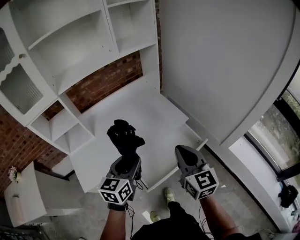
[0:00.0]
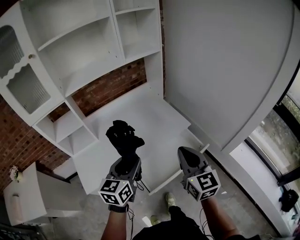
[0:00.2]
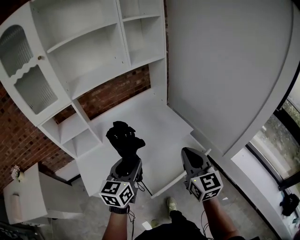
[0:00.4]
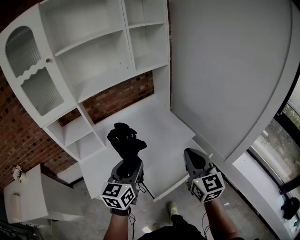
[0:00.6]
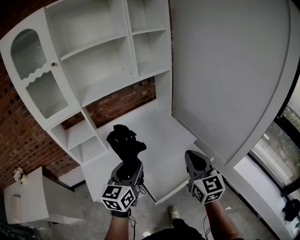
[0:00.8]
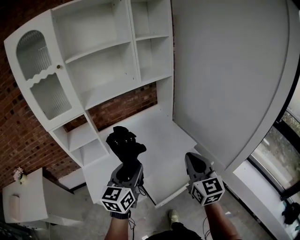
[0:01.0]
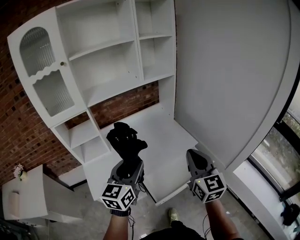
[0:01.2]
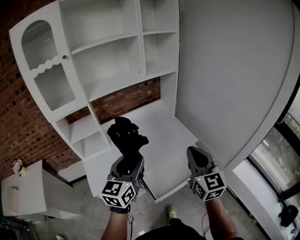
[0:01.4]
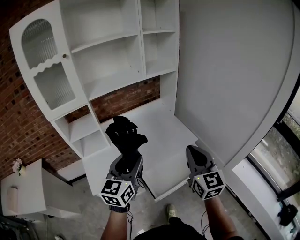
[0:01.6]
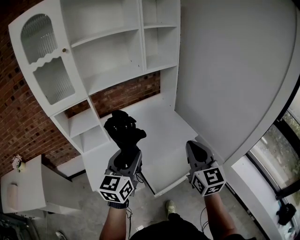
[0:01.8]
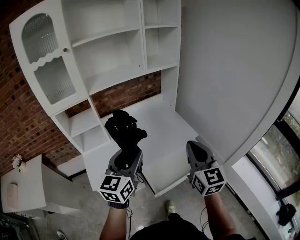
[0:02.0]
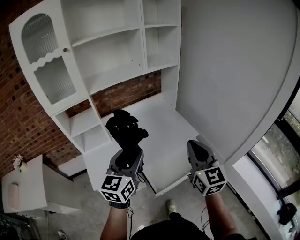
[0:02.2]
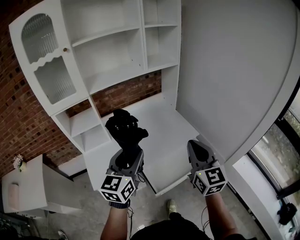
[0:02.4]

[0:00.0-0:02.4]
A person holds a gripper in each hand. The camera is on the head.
0:00.0 to 0:01.2: The right gripper goes approximately 10 cm upward. The left gripper travels upward and to the left by about 15 cm.
0:01.2 to 0:02.4: There are only small adjustments of the grippers.

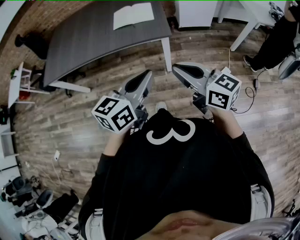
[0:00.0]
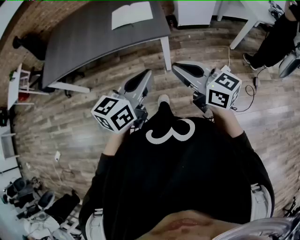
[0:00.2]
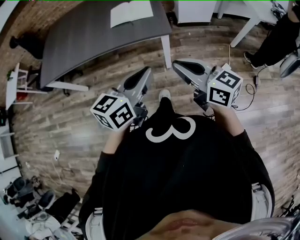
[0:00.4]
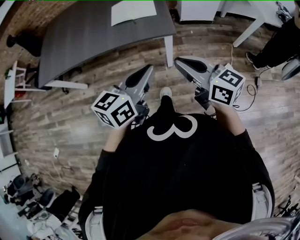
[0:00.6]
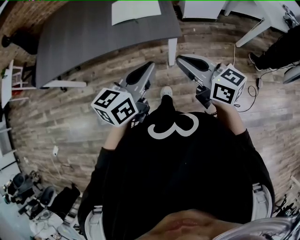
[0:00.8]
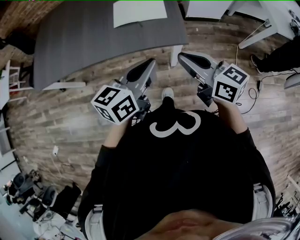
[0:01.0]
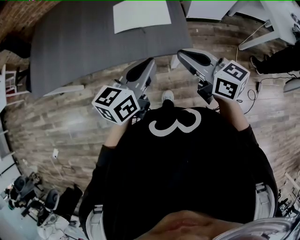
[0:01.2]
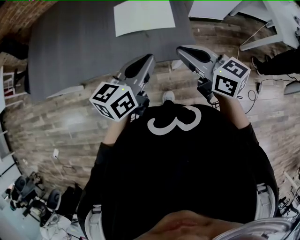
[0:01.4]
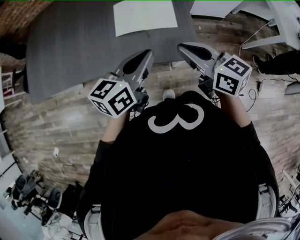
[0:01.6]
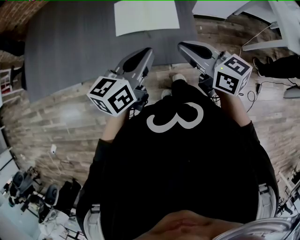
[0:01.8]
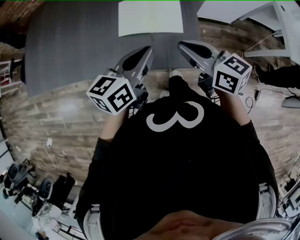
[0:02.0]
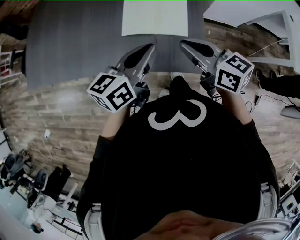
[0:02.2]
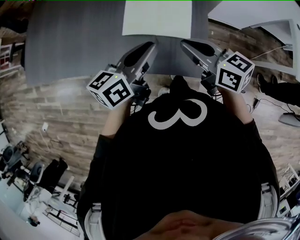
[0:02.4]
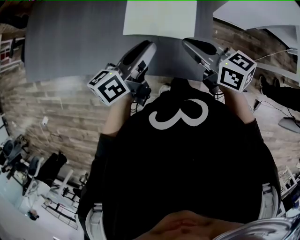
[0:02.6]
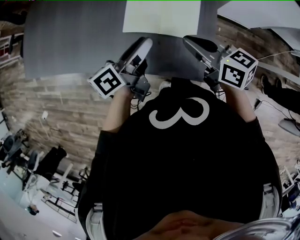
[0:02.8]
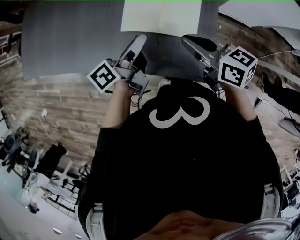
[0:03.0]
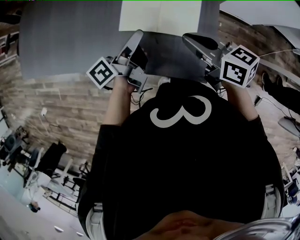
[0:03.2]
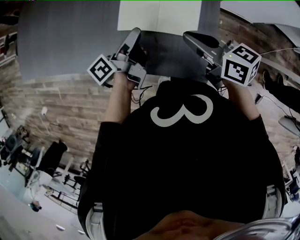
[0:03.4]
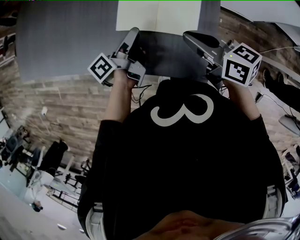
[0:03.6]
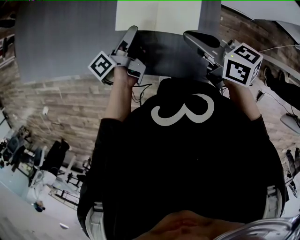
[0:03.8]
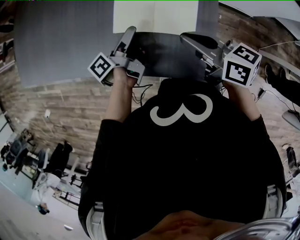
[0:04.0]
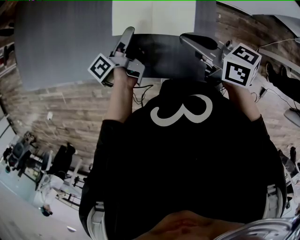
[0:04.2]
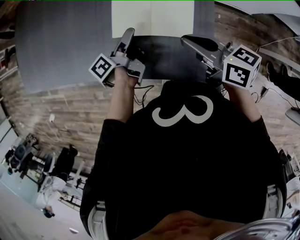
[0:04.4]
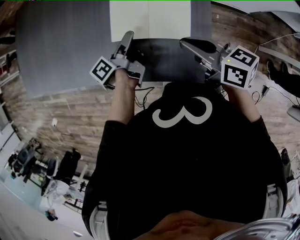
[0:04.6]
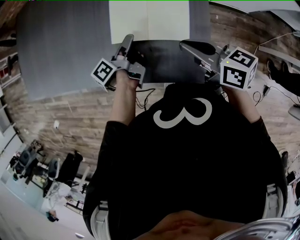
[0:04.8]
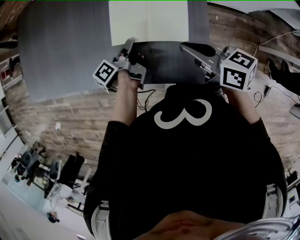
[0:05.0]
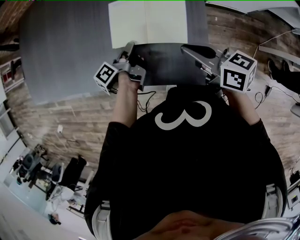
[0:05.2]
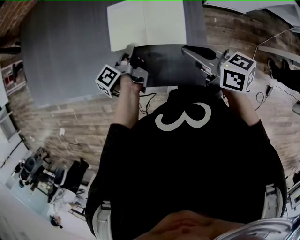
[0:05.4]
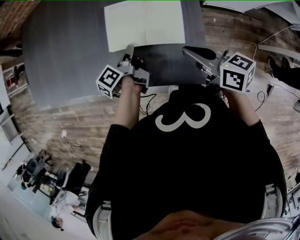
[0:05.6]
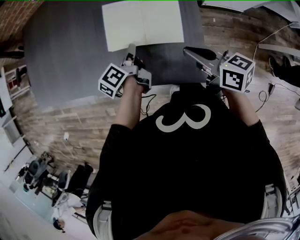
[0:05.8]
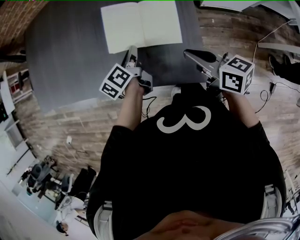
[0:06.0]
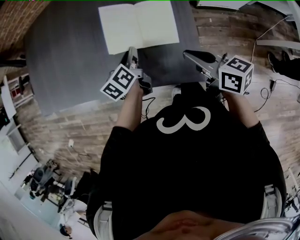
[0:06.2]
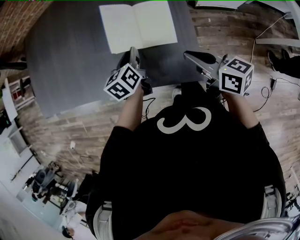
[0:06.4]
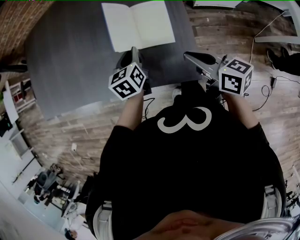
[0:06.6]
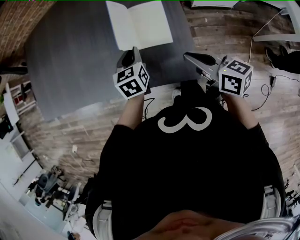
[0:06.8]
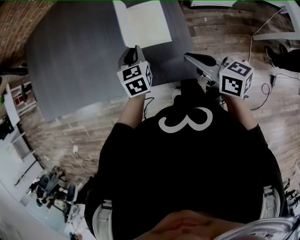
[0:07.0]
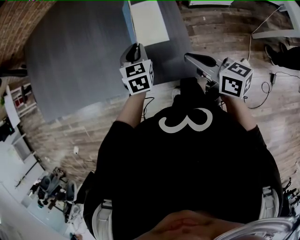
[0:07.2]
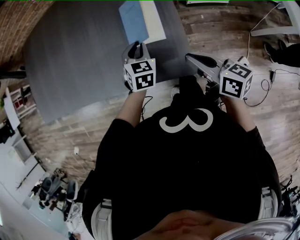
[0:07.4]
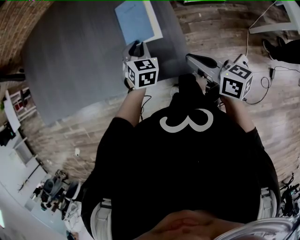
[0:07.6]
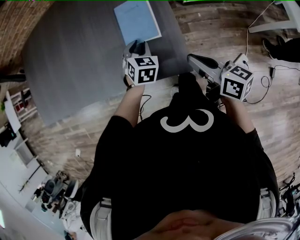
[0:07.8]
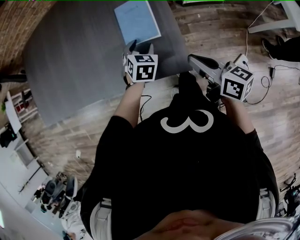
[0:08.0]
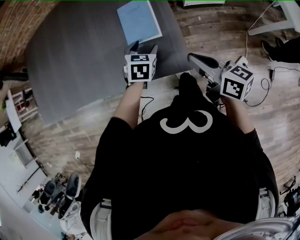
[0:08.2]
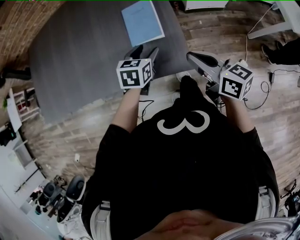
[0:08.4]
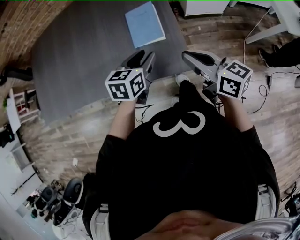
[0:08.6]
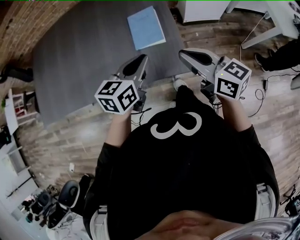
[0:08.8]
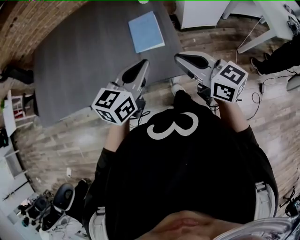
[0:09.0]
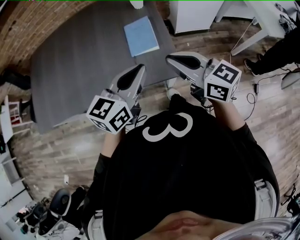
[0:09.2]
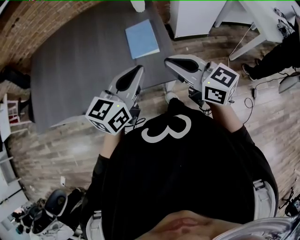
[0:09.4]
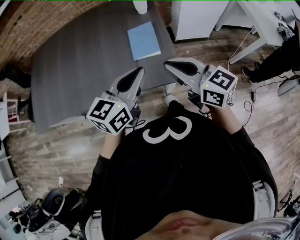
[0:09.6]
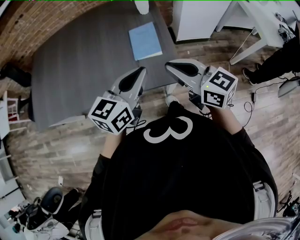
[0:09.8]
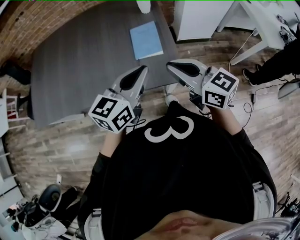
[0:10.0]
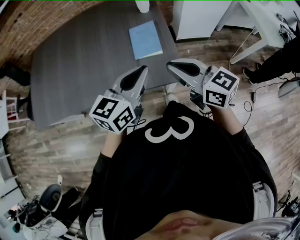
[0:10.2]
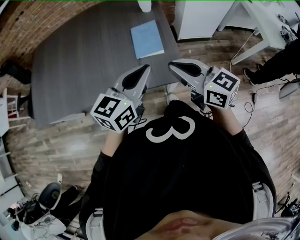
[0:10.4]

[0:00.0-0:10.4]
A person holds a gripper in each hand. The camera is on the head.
0:00.0 to 0:01.4: The grippers both shift forward by about 30 cm.
0:01.4 to 0:03.0: Both grippers move forward and downward, approximately 20 cm. The right gripper swivels approximately 20 degrees; the left gripper rotates around the line of its fingers by approximately 50 degrees, counterclockwise from behind, and opens.
0:03.0 to 0:04.4: The left gripper is displaced downward and forward by approximately 10 cm, and turns by some 20 degrees.
0:04.4 to 0:06.0: The left gripper changes its angle by about 40 degrees, and closes its fingers. Meanwhile the right gripper heads backward, covering roughly 5 cm.
0:06.0 to 0:07.4: The left gripper travels to the right by about 10 cm, and twists about 70 degrees clockwise, seen from behind; the right gripper moves backward, some 5 cm.
0:07.4 to 0:09.0: The left gripper goes some 25 cm upward and backward, swivels some 50 degrees, and opens, then closes again. The right gripper is displaced upward, to the left and backward by roughly 15 cm, and rotates about 30 degrees.
0:09.0 to 0:10.4: The grippers stay close to where they were, moving slightly.

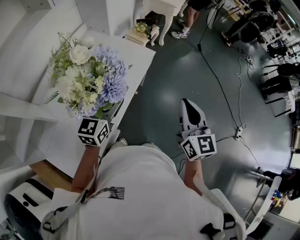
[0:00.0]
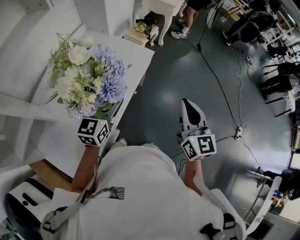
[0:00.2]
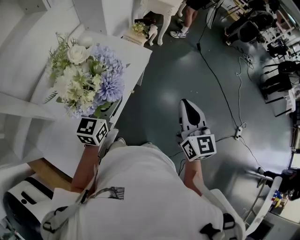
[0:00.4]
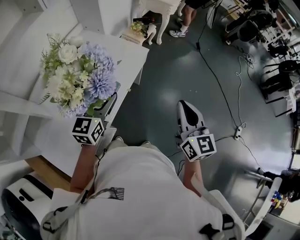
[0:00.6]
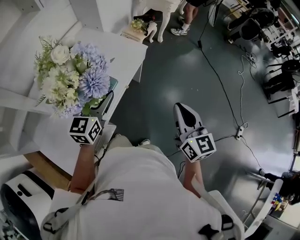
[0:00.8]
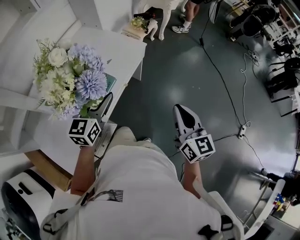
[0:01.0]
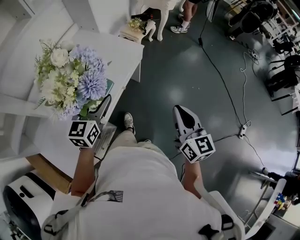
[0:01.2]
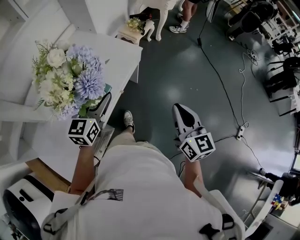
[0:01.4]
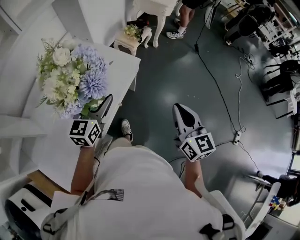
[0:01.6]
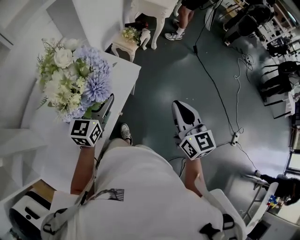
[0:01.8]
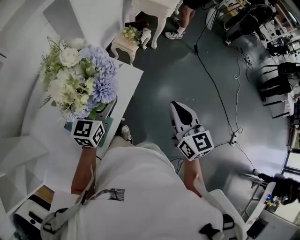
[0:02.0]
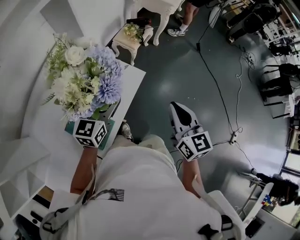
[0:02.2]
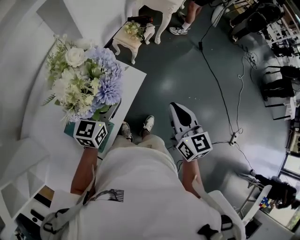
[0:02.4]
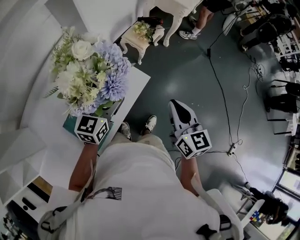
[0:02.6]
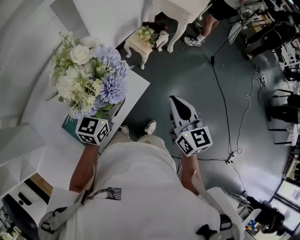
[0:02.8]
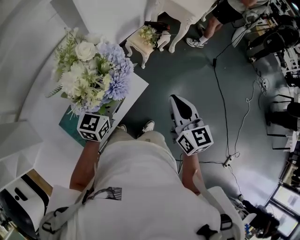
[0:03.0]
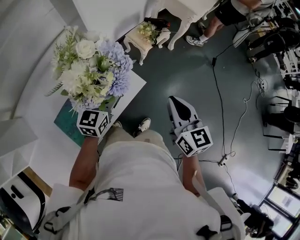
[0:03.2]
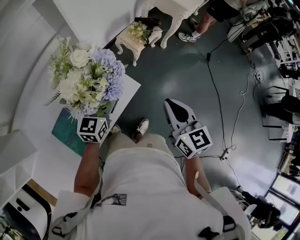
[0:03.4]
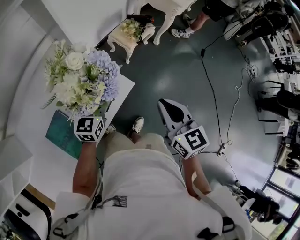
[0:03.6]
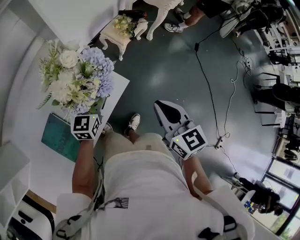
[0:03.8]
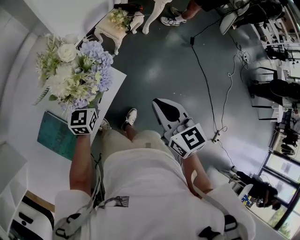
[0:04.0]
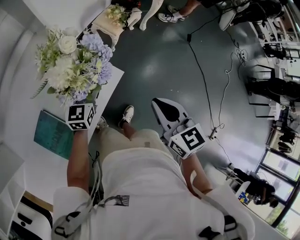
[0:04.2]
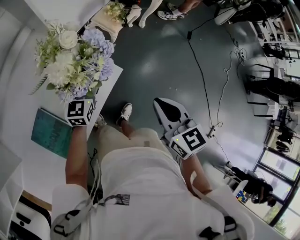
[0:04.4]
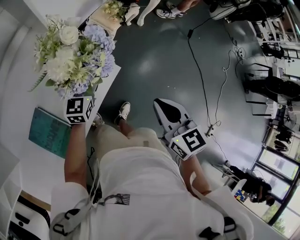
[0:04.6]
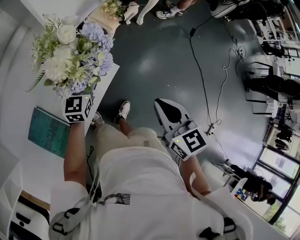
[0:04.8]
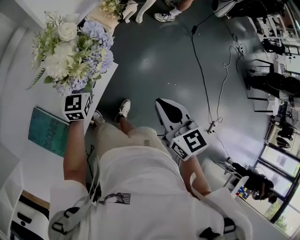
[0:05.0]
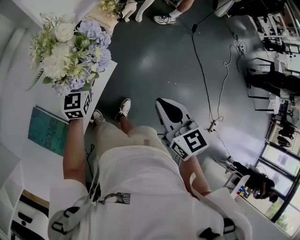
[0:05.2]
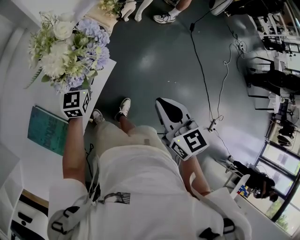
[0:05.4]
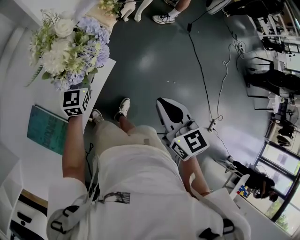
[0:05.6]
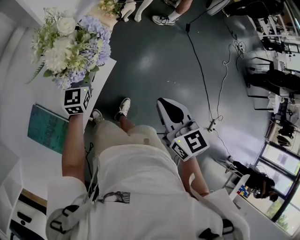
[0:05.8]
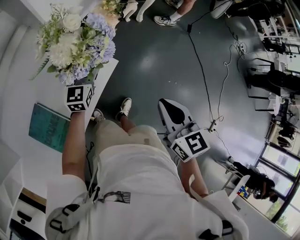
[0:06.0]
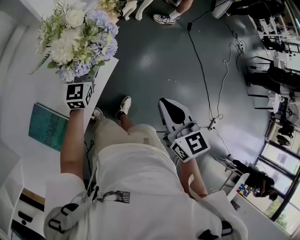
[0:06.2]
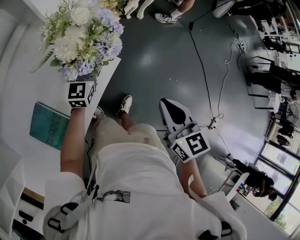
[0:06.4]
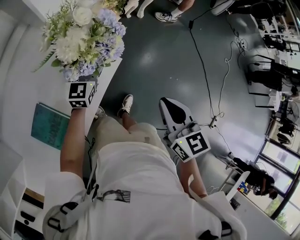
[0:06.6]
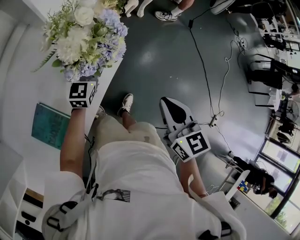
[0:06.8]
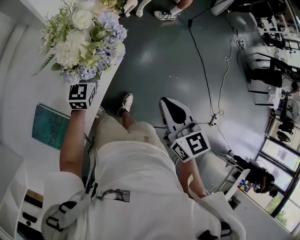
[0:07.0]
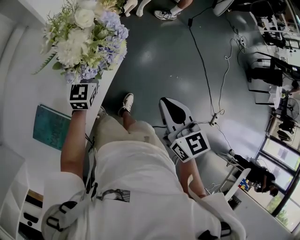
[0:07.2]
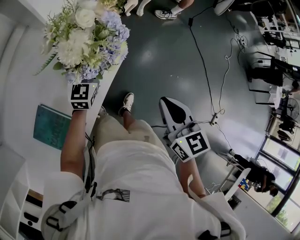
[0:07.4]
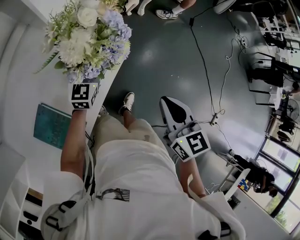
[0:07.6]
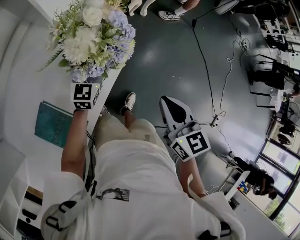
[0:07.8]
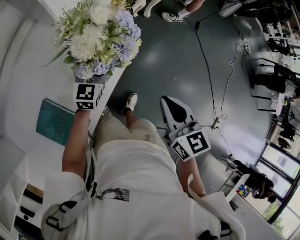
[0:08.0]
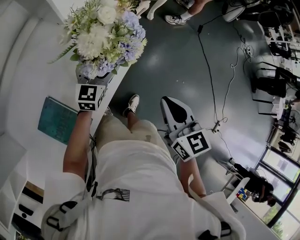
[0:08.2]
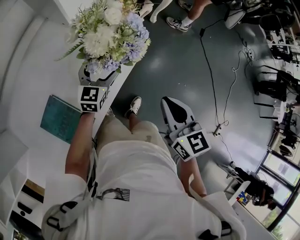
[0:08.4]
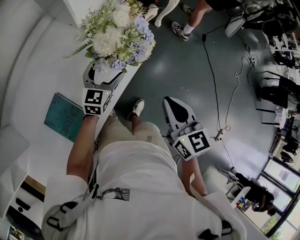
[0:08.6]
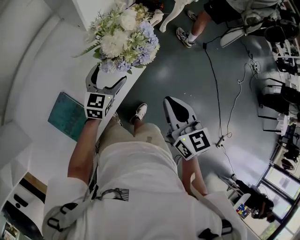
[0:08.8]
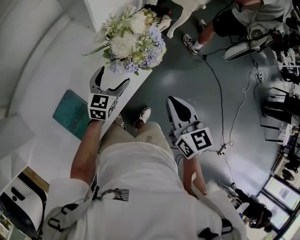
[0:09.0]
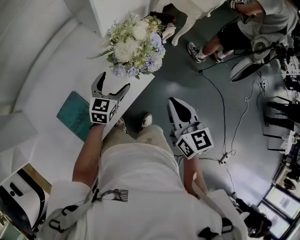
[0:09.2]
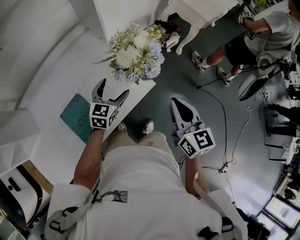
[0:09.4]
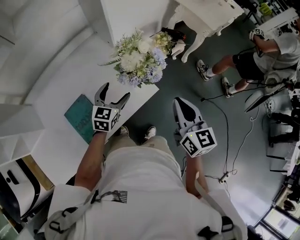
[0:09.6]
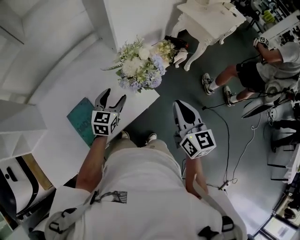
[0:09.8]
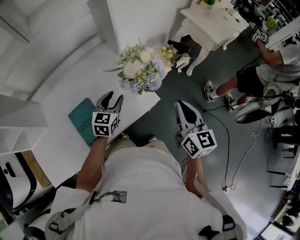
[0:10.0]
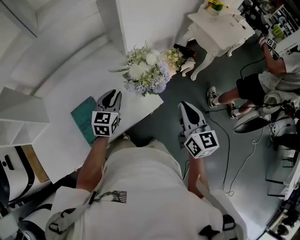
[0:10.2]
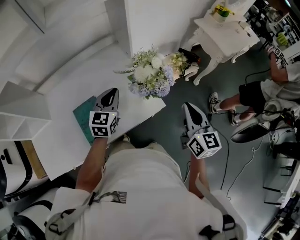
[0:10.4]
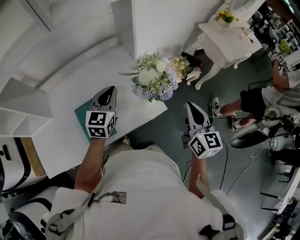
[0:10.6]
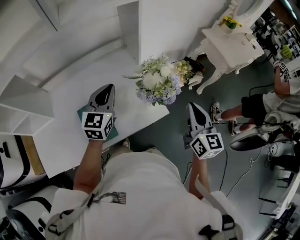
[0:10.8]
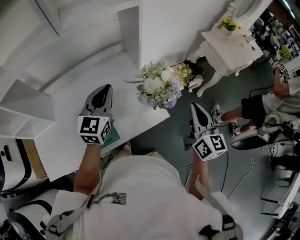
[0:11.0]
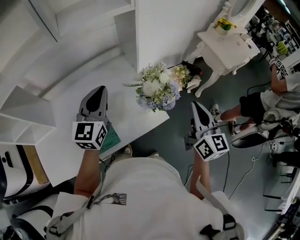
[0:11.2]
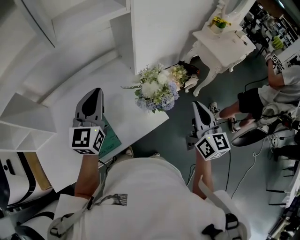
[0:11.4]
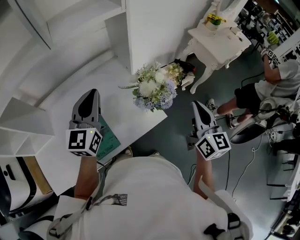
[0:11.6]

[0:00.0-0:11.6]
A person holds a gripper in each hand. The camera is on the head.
0:00.0 to 0:01.4: The right gripper is displaced to the right and downward by approximately 10 cm. Meanwhile the left gripper travels to the right by roughly 10 cm.
0:01.4 to 0:02.8: Both grippers move forward, about 30 cm.
0:02.8 to 0:04.4: The left gripper moves downward and forward, about 15 cm, while the right gripper moves downward, roughly 5 cm.
0:04.4 to 0:07.2: The grippers stay close to where they were, moving slightly.
0:07.2 to 0:08.8: The left gripper shifts by about 5 cm, while the right gripper heads to the left, covering roughly 5 cm.
0:08.8 to 0:10.2: The left gripper shifts about 10 cm upward and to the left, rotates approximately 30 degrees, and closes up, while the right gripper shifts some 10 cm forward and upward.
0:10.2 to 0:11.6: The left gripper moves upward and to the left, approximately 20 cm, and turns by about 20 degrees. The right gripper goes about 10 cm upward.
